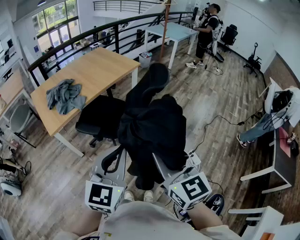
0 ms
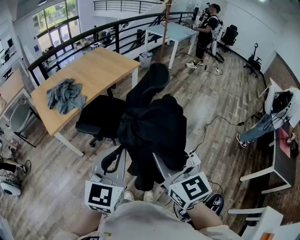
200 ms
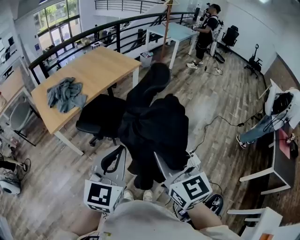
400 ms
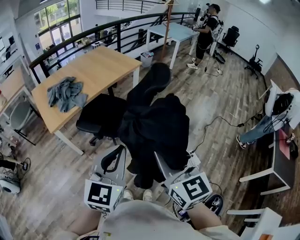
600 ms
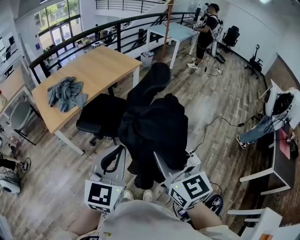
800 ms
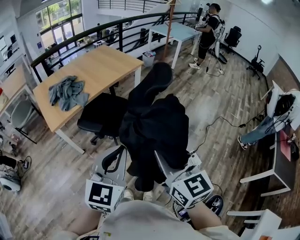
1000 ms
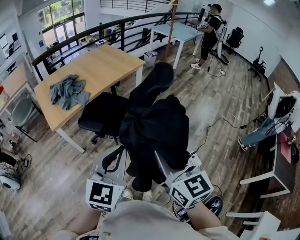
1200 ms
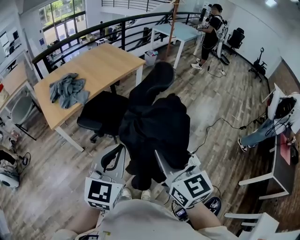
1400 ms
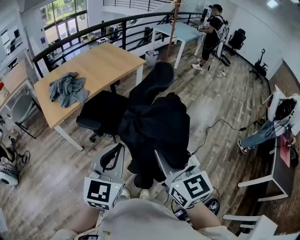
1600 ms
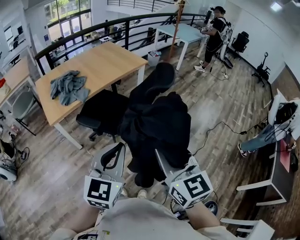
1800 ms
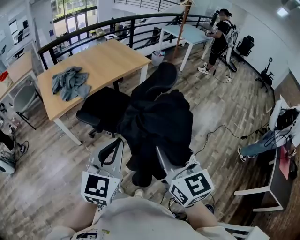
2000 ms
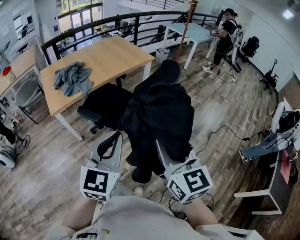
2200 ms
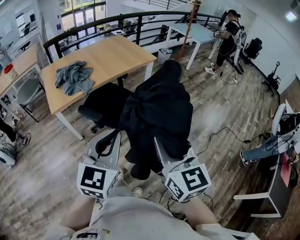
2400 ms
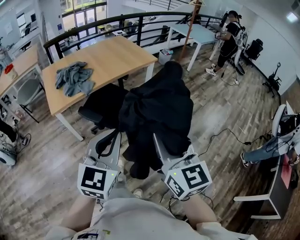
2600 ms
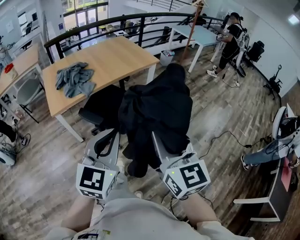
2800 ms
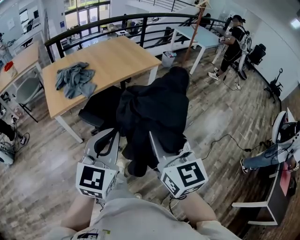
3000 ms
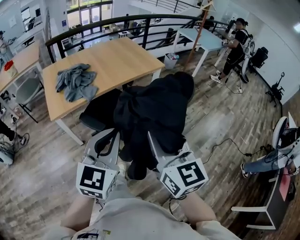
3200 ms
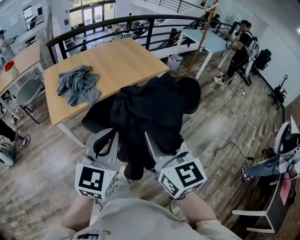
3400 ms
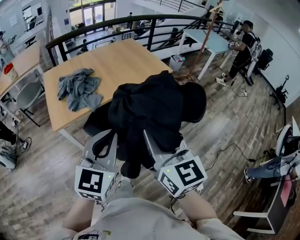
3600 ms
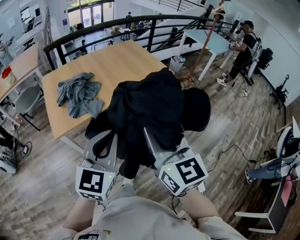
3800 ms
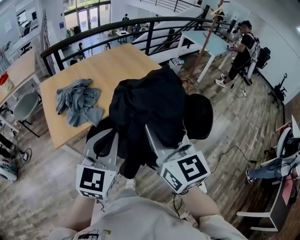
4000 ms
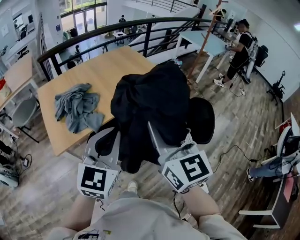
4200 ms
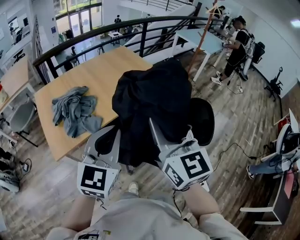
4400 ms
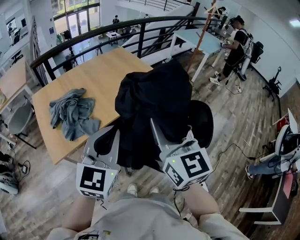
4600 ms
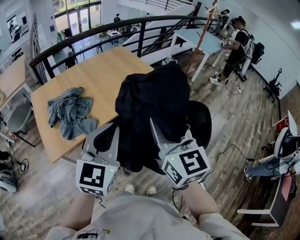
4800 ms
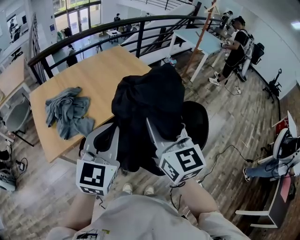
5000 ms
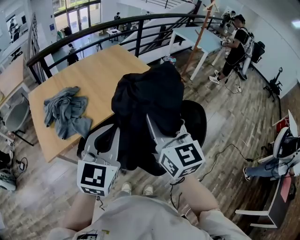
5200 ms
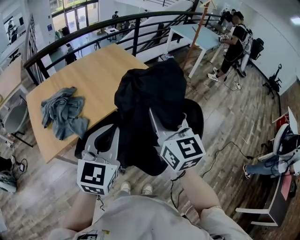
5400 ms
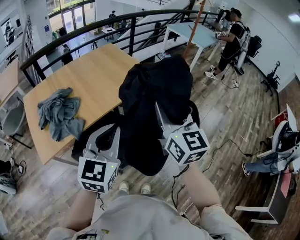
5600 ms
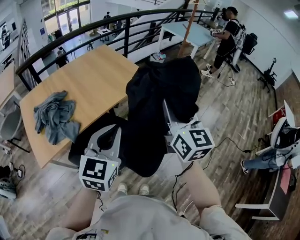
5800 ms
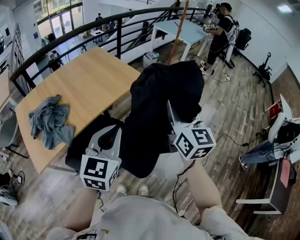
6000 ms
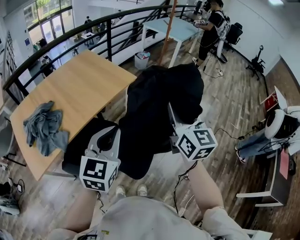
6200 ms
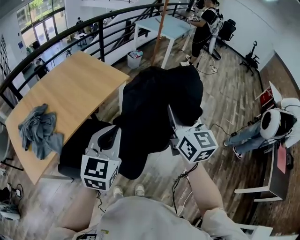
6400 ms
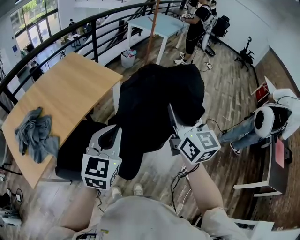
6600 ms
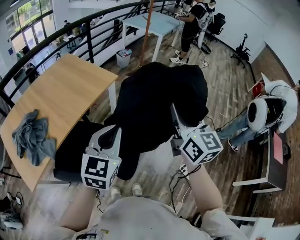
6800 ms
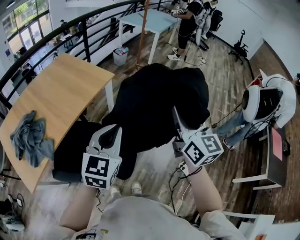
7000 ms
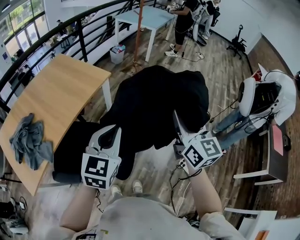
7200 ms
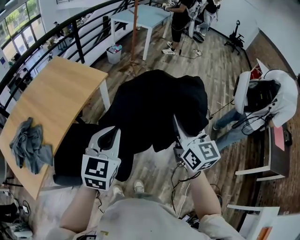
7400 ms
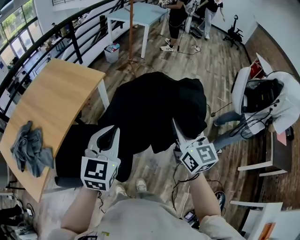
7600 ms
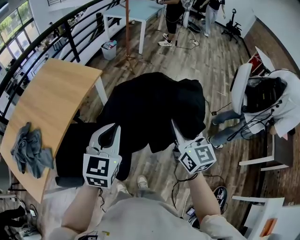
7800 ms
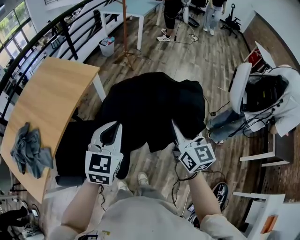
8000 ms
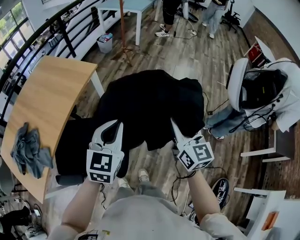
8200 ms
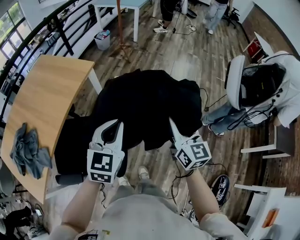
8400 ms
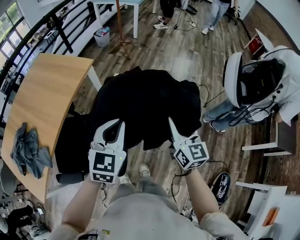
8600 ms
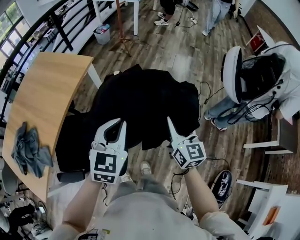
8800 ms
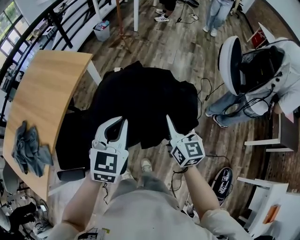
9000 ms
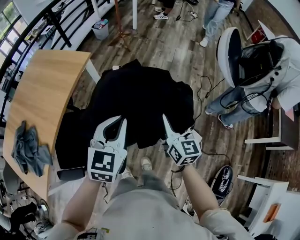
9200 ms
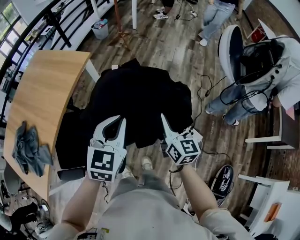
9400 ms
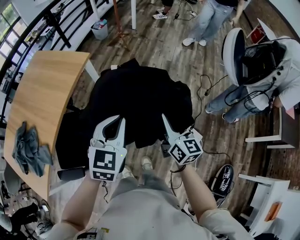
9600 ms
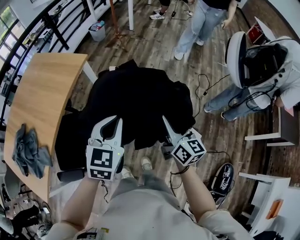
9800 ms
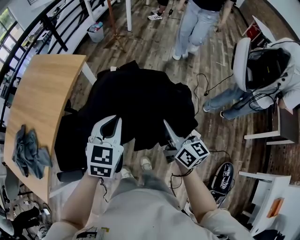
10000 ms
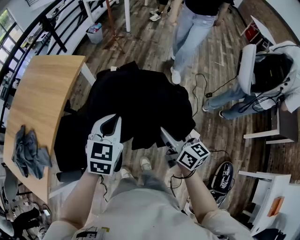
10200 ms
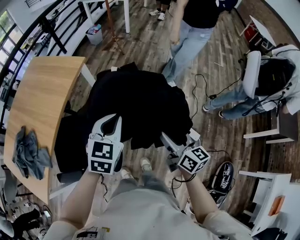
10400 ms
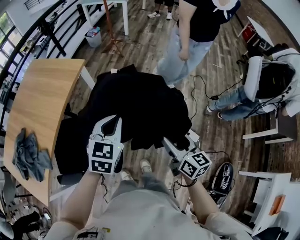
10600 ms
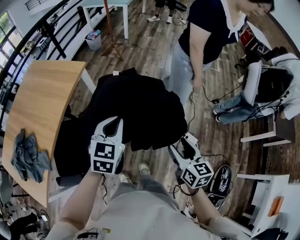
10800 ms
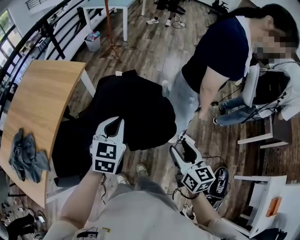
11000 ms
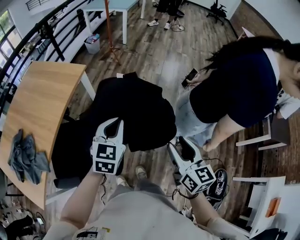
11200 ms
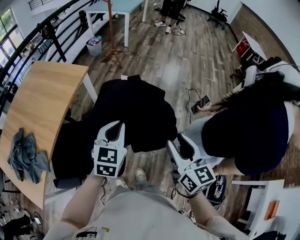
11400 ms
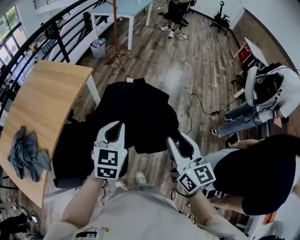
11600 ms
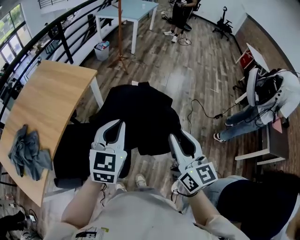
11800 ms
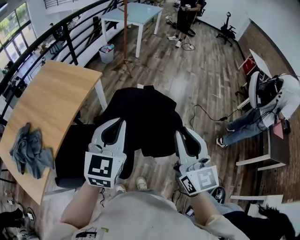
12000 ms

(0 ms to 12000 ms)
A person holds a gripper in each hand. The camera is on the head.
0 ms - 1600 ms: The grippers move only a little.
1600 ms - 3000 ms: The grippers both shift forward by roughly 10 cm.
3000 ms - 4400 ms: The two grippers go roughly 35 cm forward.
4400 ms - 6000 ms: The grippers both shift to the right and forward by some 25 cm.
6000 ms - 7600 ms: Both grippers travel together to the right, roughly 20 cm.
7600 ms - 9000 ms: The right gripper shifts roughly 15 cm downward. Meanwhile the left gripper goes approximately 10 cm downward, to the right and forward.
9000 ms - 10400 ms: The right gripper is displaced backward by some 10 cm, turns by approximately 20 degrees, and opens up.
10400 ms - 12000 ms: The left gripper goes some 15 cm upward and to the left, and turns by approximately 20 degrees; the right gripper heads upward, covering some 25 cm, turns by approximately 40 degrees, and closes up.

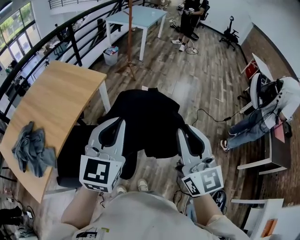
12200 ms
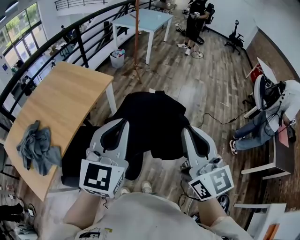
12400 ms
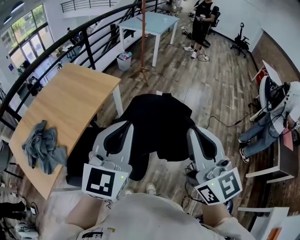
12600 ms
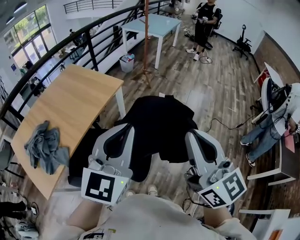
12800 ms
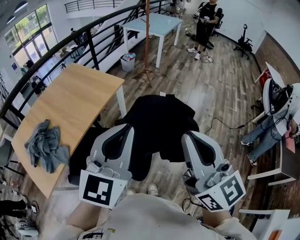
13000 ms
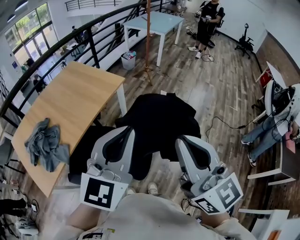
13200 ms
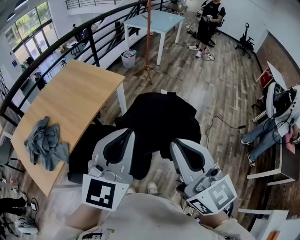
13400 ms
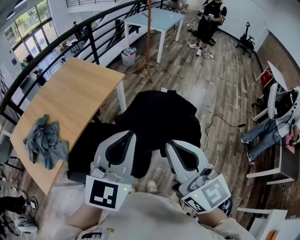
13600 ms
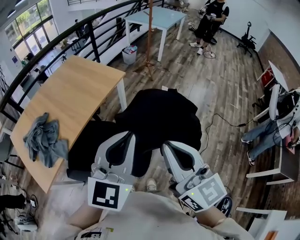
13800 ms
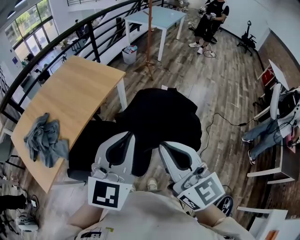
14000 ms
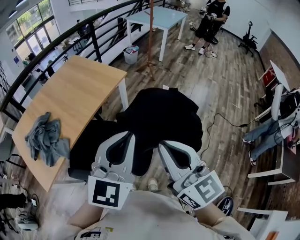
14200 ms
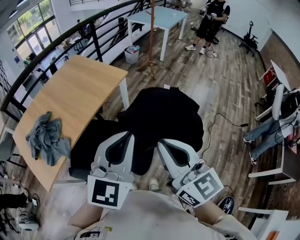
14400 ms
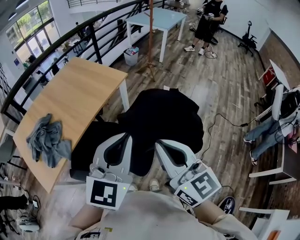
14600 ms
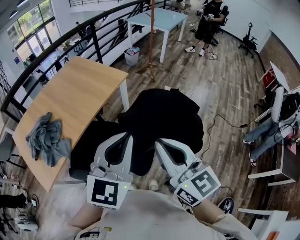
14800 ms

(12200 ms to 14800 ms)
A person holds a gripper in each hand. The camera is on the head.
12200 ms - 13400 ms: The right gripper travels to the left by roughly 10 cm, and turns by roughly 20 degrees. Meanwhile the left gripper is displaced backward by about 5 cm.
13400 ms - 14800 ms: The right gripper moves downward, about 5 cm.

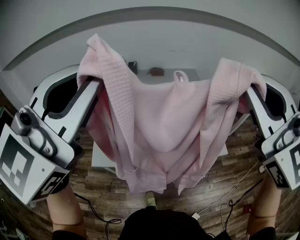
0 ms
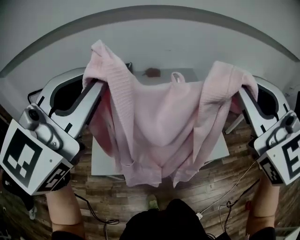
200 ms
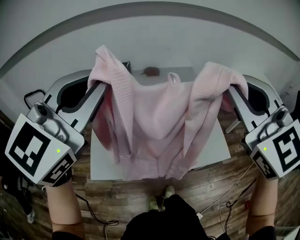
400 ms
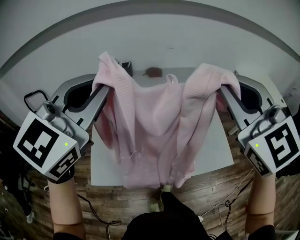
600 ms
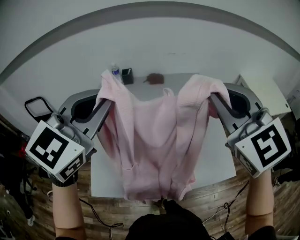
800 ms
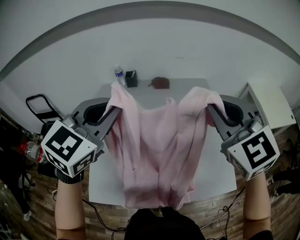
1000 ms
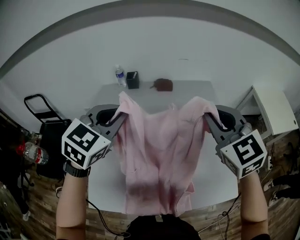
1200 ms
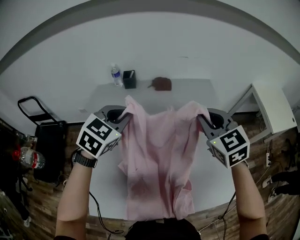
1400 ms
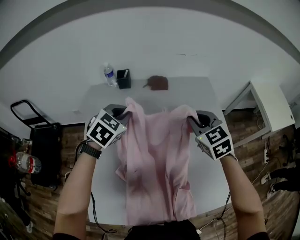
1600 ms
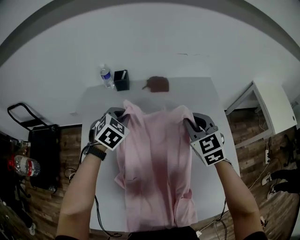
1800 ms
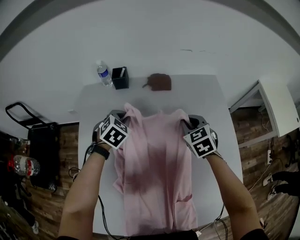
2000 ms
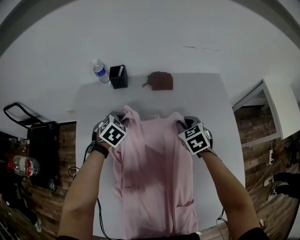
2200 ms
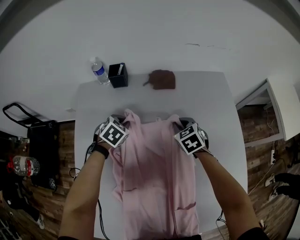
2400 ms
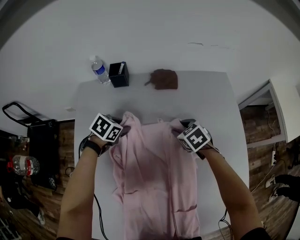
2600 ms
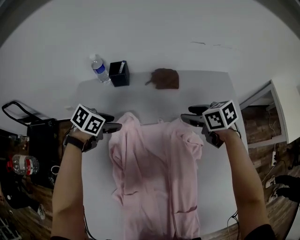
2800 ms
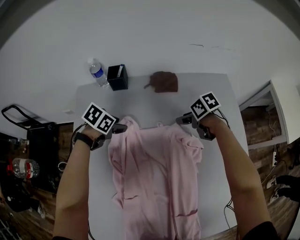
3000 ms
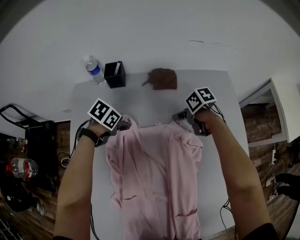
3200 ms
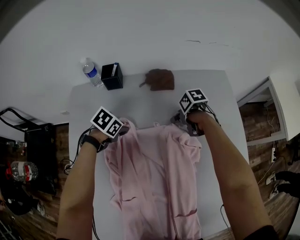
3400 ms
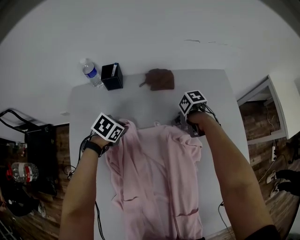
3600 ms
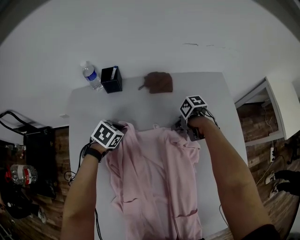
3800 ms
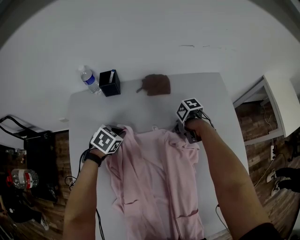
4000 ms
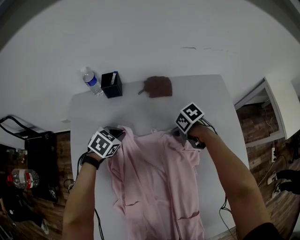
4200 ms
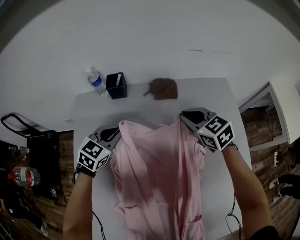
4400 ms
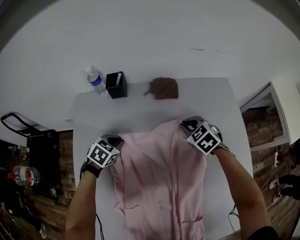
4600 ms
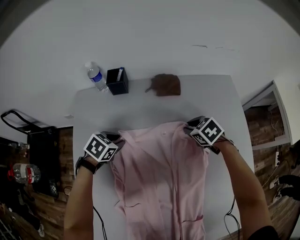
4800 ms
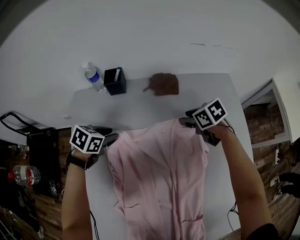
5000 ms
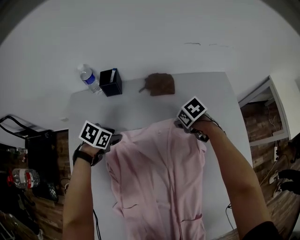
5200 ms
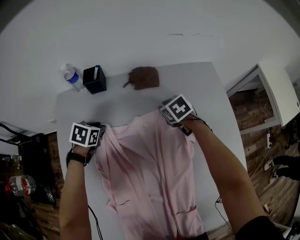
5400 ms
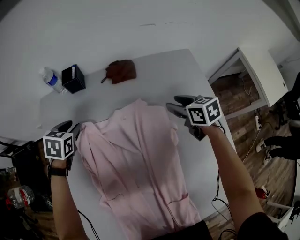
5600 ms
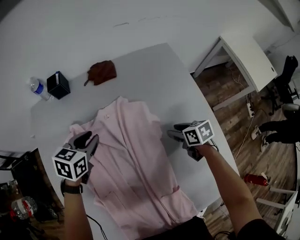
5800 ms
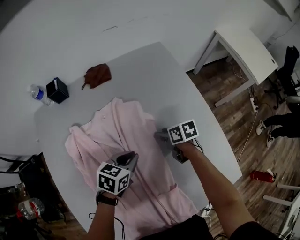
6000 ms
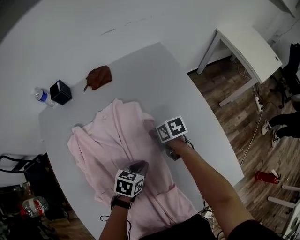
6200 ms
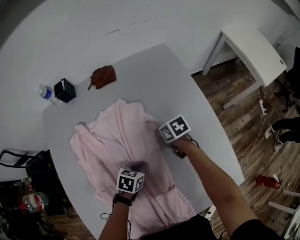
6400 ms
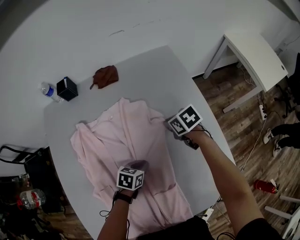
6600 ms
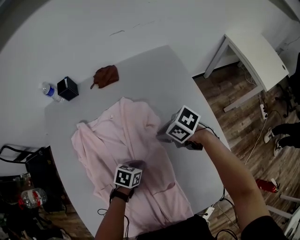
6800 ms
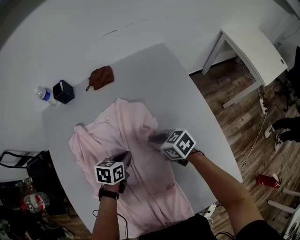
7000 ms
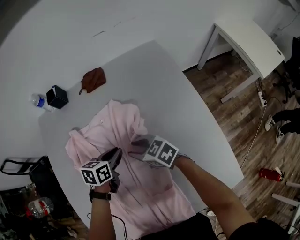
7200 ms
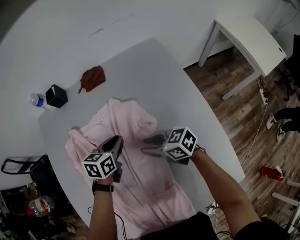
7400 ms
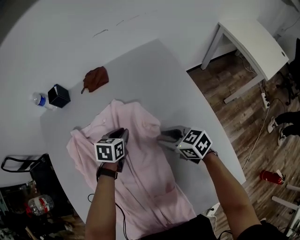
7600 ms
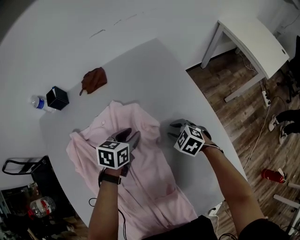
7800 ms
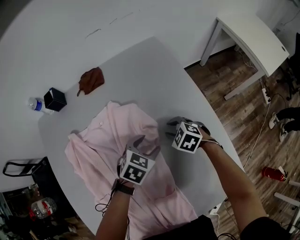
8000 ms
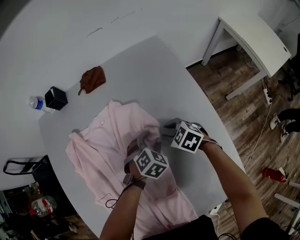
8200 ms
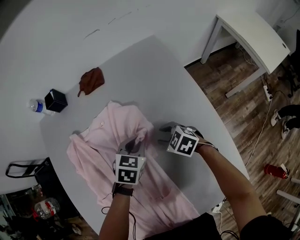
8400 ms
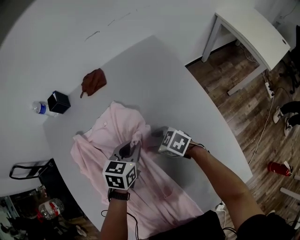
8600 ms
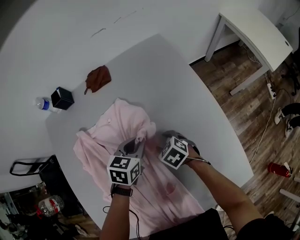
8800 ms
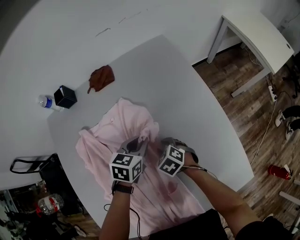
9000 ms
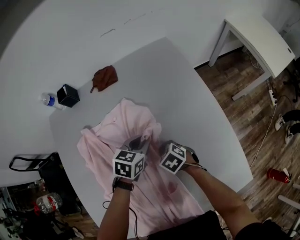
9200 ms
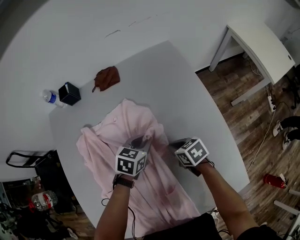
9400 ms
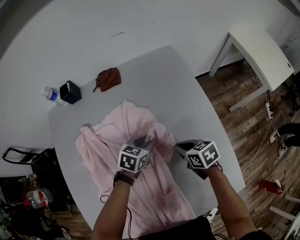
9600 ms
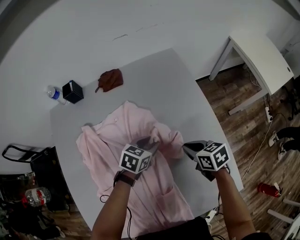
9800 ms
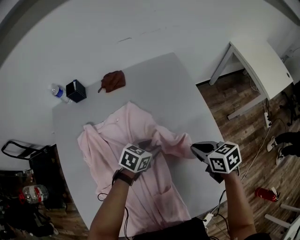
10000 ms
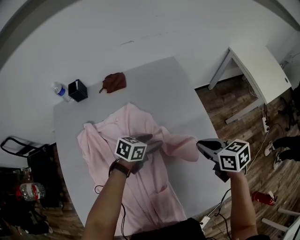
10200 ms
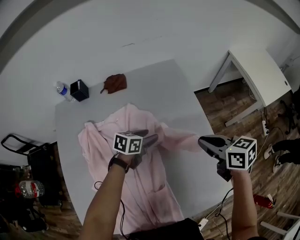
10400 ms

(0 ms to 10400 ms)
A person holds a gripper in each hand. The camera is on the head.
0 ms - 1400 ms: The pair of grippers is taken forward, approximately 50 cm. Both grippers move downward, some 30 cm. The left gripper points its fingers about 40 degrees further downward, while the right gripper swivels about 30 degrees.
1400 ms - 3000 ms: The right gripper goes up and down, some 35 cm each way, reversing 2 times, angles its fingers downward, by approximately 30 degrees, and opens its fingers, while the left gripper is displaced downward by roughly 30 cm, swivels approximately 50 degrees, and opens.
3000 ms - 4400 ms: The right gripper travels upward by approximately 10 cm, turns by about 50 degrees, and closes up, while the left gripper is displaced upward by approximately 5 cm, rotates roughly 40 degrees, and closes up.
4400 ms - 6000 ms: The left gripper goes roughly 30 cm to the right and backward, rotates some 30 degrees, and opens and closes again. Meanwhile the right gripper shifts roughly 30 cm backward, downward and to the right, twists some 60 degrees clockwise, seen from behind, and opens up.
6000 ms - 7400 ms: The right gripper changes place by roughly 10 cm, changes its angle by some 50 degrees, and closes, then opens again. Meanwhile the left gripper goes downward and returns, roughly 10 cm each way.
7400 ms - 9000 ms: The left gripper shifts about 5 cm to the right, and opens and closes again. Meanwhile the right gripper is displaced downward by some 10 cm, reaches some 15 cm to the right, then returns, and points its fingers roughly 40 degrees further downward.
9000 ms - 10400 ms: The left gripper moves approximately 5 cm, and opens up. Meanwhile the right gripper goes some 30 cm upward and to the right, points its fingers roughly 30 degrees further upward, and closes its fingers.
